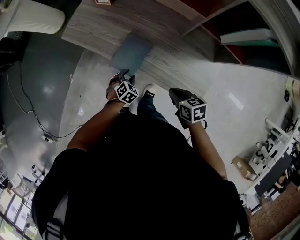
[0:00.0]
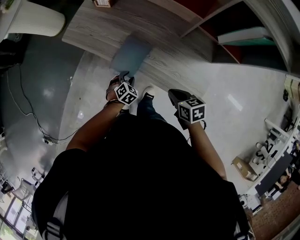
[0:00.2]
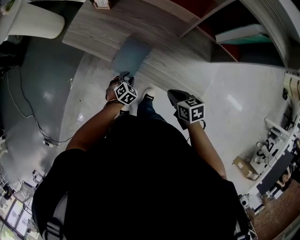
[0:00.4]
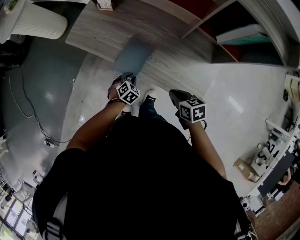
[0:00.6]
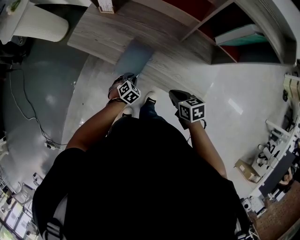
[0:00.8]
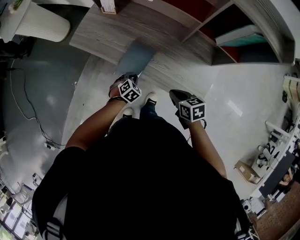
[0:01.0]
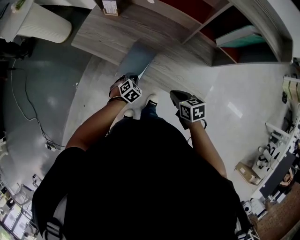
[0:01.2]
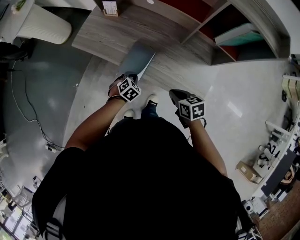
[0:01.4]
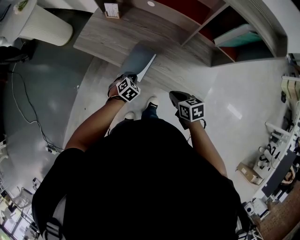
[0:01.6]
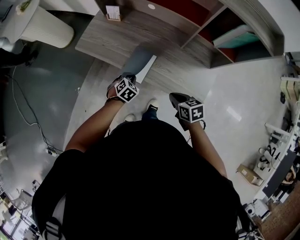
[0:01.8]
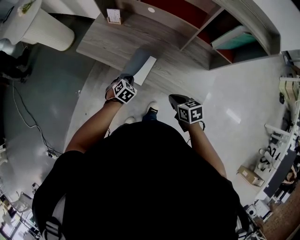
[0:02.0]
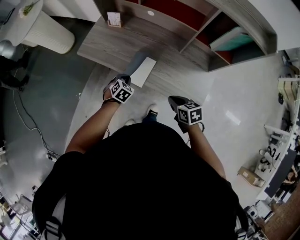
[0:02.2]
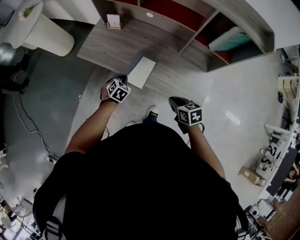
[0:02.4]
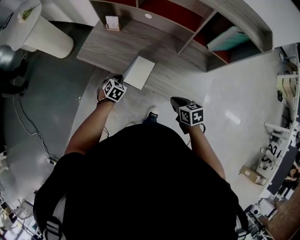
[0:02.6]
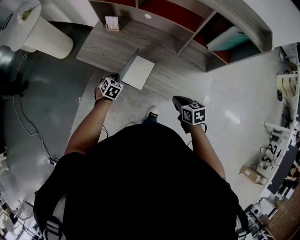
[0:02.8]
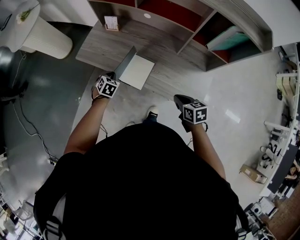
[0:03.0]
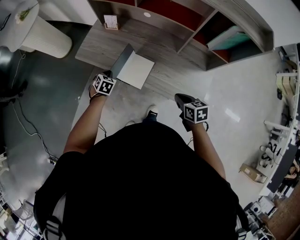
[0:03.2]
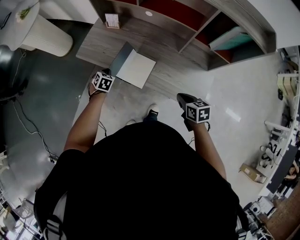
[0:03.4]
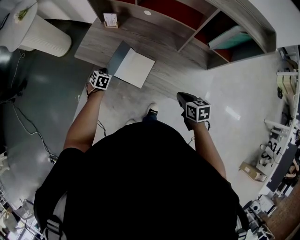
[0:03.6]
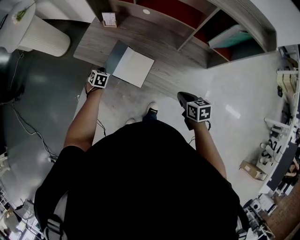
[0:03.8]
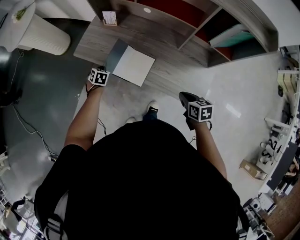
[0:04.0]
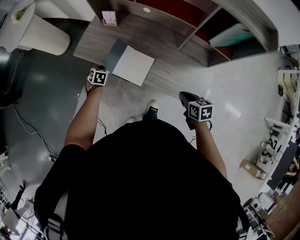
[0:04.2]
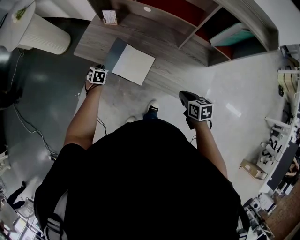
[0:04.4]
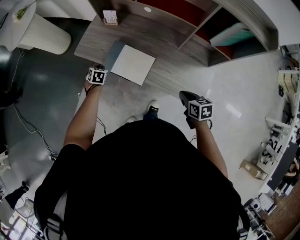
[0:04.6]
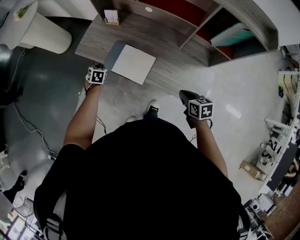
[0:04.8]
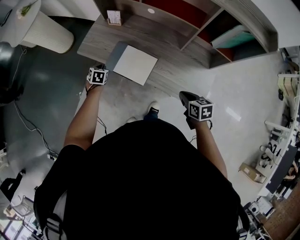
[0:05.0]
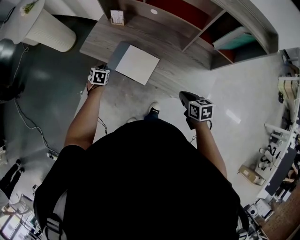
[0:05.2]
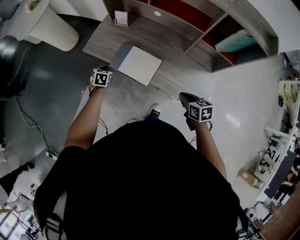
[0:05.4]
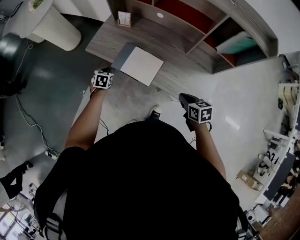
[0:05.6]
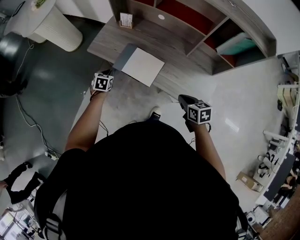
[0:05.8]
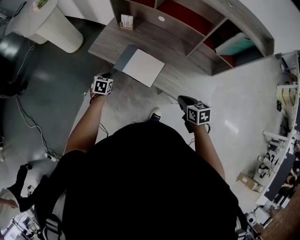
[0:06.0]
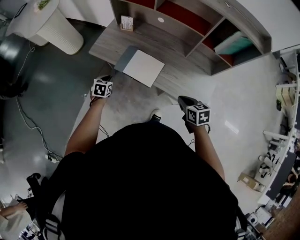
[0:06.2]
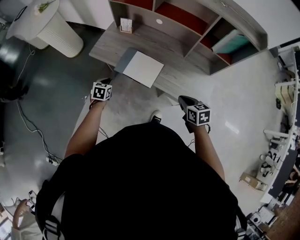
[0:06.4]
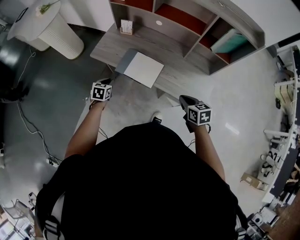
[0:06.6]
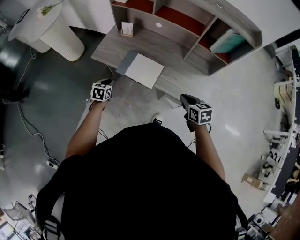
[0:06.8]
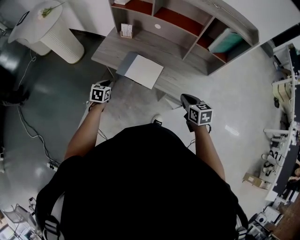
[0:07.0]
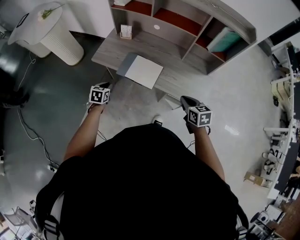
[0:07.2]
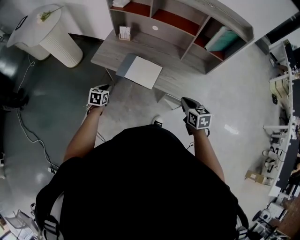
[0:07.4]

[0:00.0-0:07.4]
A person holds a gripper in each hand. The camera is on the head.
0.0 to 1.4 s: The left gripper heads upward, covering roughly 5 cm, and closes its fingers.
1.4 to 3.0 s: The left gripper shifts approximately 15 cm to the left, forward and upward.
3.0 to 4.4 s: The left gripper moves to the left and forward, about 10 cm.
4.4 to 6.0 s: The left gripper goes some 10 cm backward and upward, while the right gripper travels to the left by roughly 5 cm.
6.0 to 7.4 s: The left gripper moves backward, about 5 cm, while the right gripper travels backward and upward by approximately 10 cm.

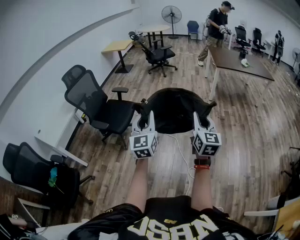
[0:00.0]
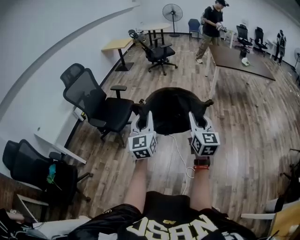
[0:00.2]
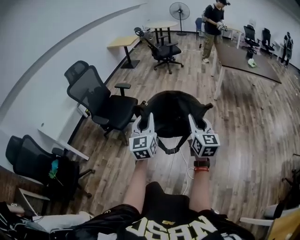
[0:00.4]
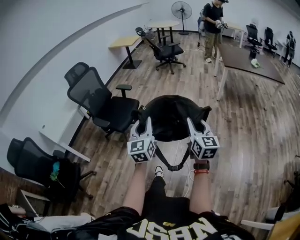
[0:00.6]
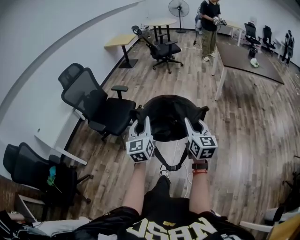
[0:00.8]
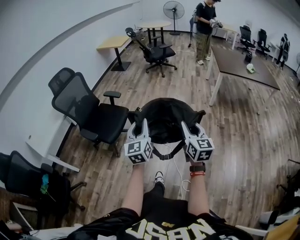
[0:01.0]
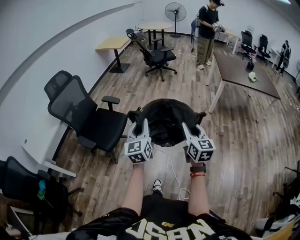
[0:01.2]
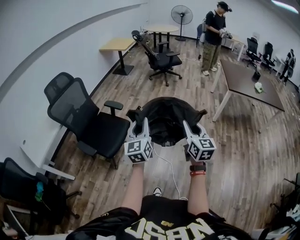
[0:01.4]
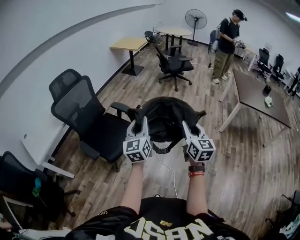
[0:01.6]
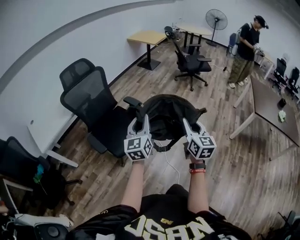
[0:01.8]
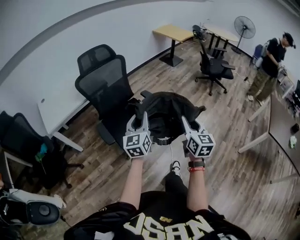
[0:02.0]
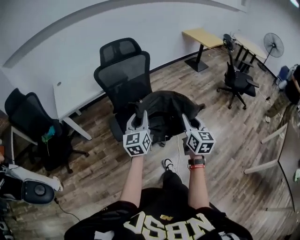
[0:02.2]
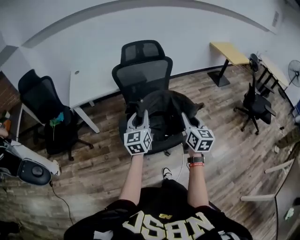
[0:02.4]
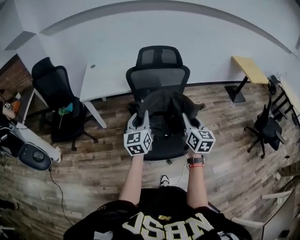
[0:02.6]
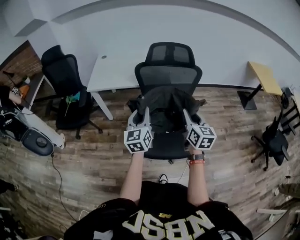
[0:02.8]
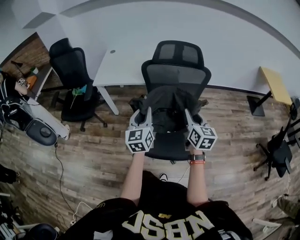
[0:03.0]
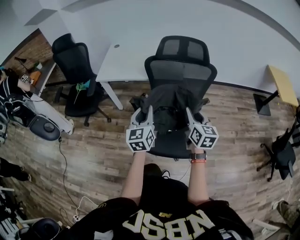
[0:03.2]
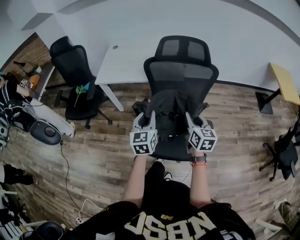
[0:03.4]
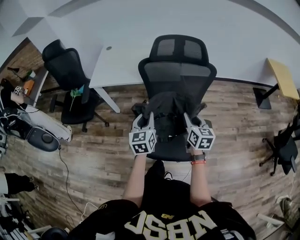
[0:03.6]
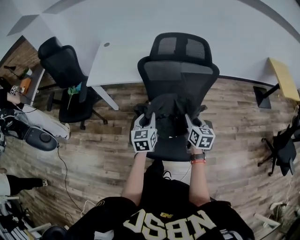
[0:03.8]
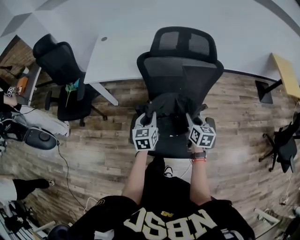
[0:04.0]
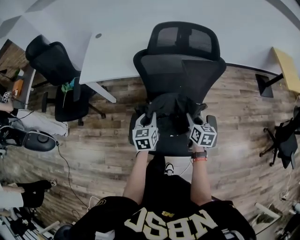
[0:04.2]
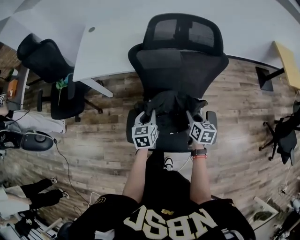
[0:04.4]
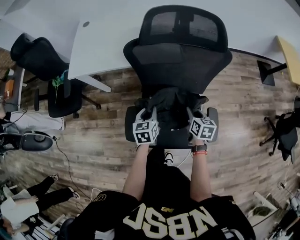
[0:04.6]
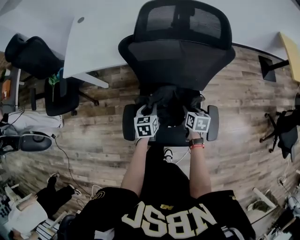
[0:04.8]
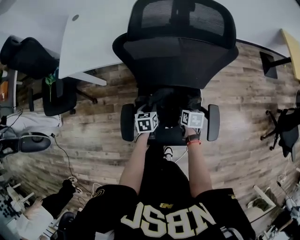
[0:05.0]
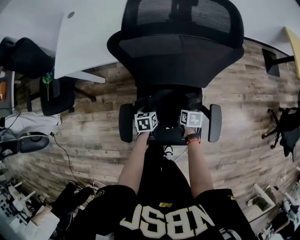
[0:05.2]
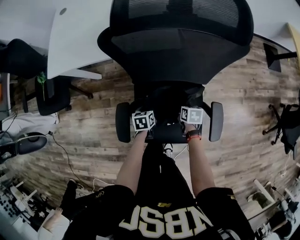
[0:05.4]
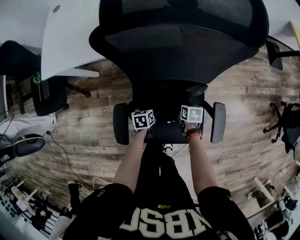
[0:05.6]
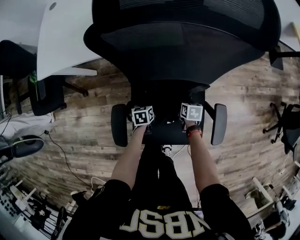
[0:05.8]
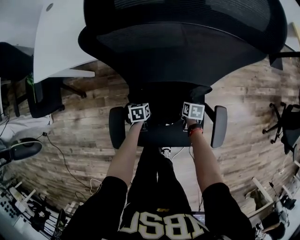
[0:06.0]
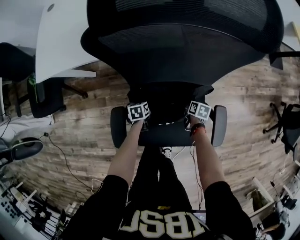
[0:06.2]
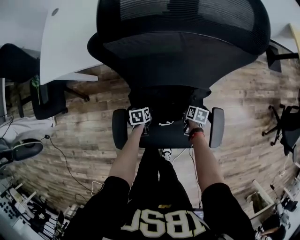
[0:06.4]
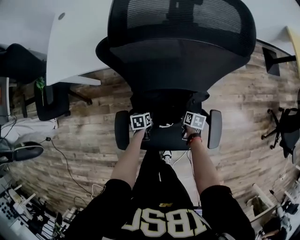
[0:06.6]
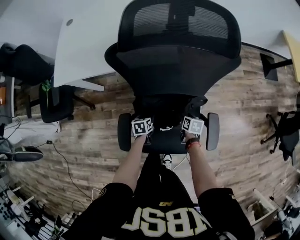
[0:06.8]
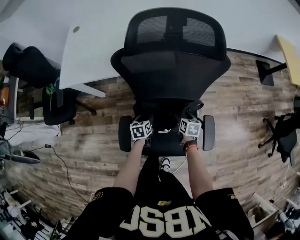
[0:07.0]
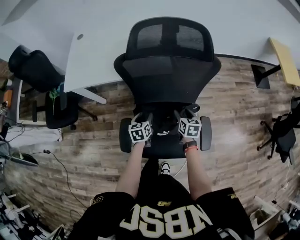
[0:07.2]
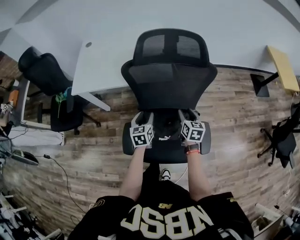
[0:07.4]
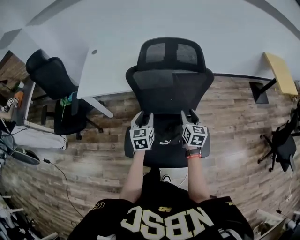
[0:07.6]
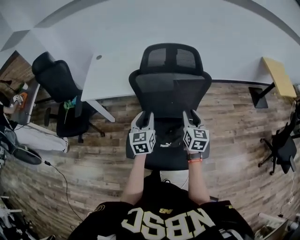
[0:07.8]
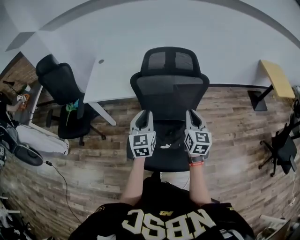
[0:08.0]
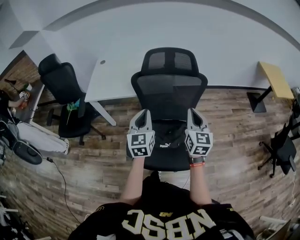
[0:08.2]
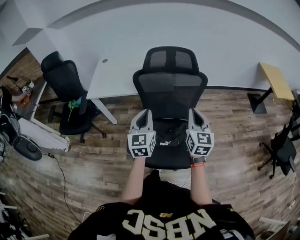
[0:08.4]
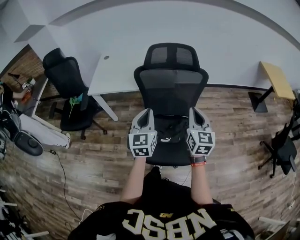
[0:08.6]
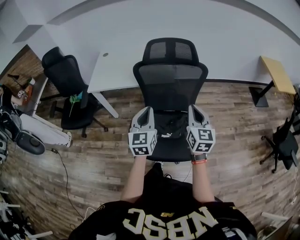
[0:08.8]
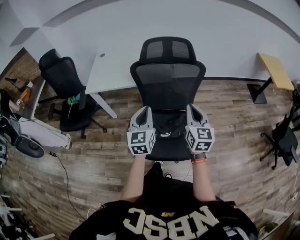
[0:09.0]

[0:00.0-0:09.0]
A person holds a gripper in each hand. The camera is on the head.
0.0 to 1.6 s: Both grippers are carried forward, about 40 cm. The right gripper swivels roughly 20 degrees.
1.6 to 3.0 s: Both grippers are carried roughly 50 cm. The right gripper swivels some 70 degrees. Meanwhile the left gripper turns by approximately 70 degrees.
3.0 to 4.4 s: Both grippers travel together downward and forward, approximately 25 cm. The left gripper rotates roughly 30 degrees. The right gripper turns by some 30 degrees.
4.4 to 6.0 s: The grippers both shift downward by roughly 35 cm. The left gripper tips its fingers downward by roughly 30 degrees; the right gripper swivels approximately 30 degrees.
6.0 to 7.6 s: The grippers both shift upward by roughly 40 cm. The right gripper tips its fingers upward by about 40 degrees, and opens and closes again. Meanwhile the left gripper points its fingers about 40 degrees further upward, and opens up.
7.6 to 9.0 s: Both grippers move upward and backward, about 20 cm. The left gripper closes up. The right gripper closes.

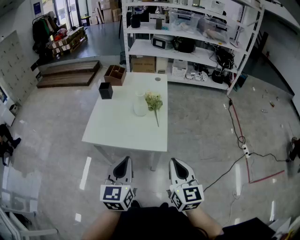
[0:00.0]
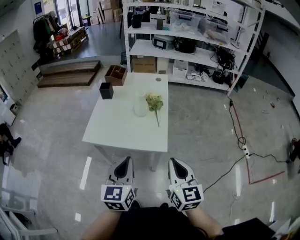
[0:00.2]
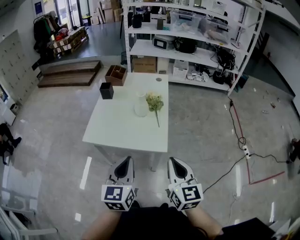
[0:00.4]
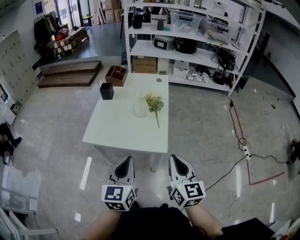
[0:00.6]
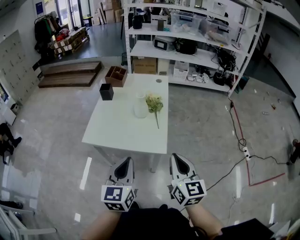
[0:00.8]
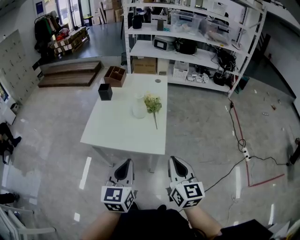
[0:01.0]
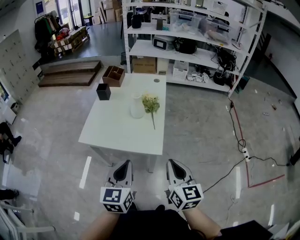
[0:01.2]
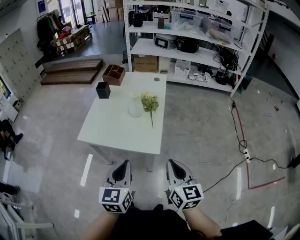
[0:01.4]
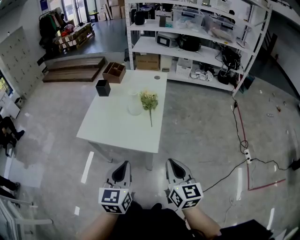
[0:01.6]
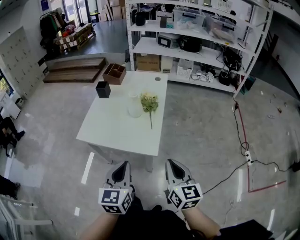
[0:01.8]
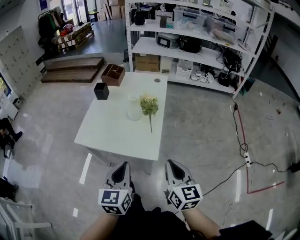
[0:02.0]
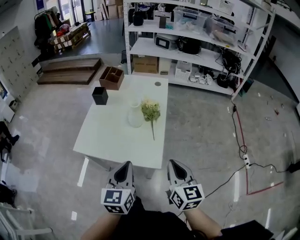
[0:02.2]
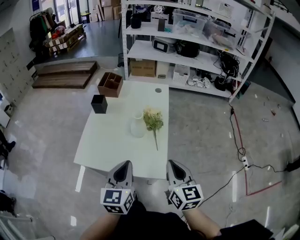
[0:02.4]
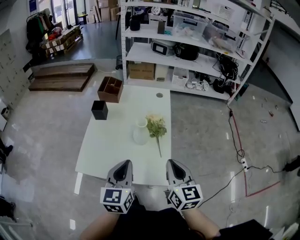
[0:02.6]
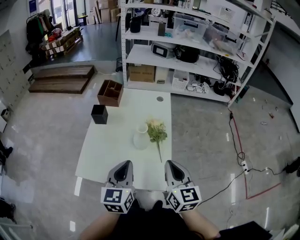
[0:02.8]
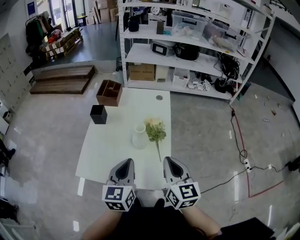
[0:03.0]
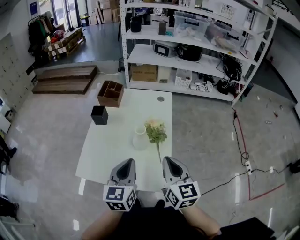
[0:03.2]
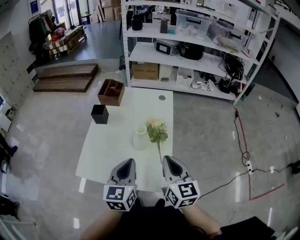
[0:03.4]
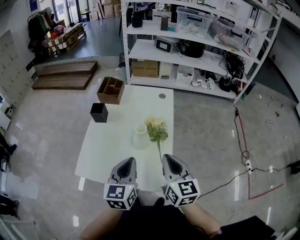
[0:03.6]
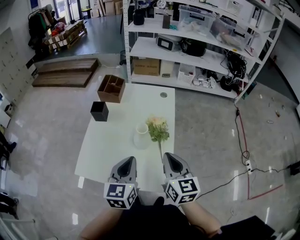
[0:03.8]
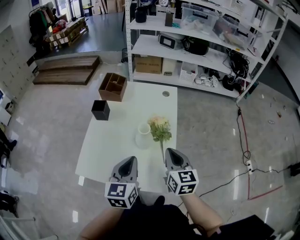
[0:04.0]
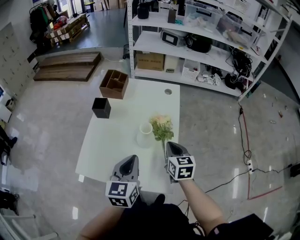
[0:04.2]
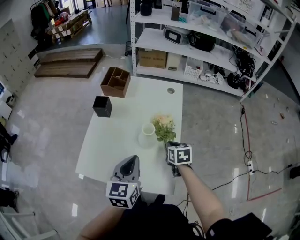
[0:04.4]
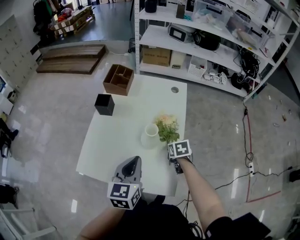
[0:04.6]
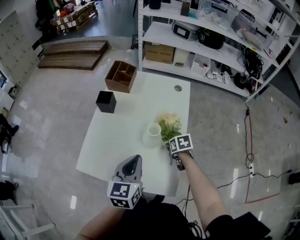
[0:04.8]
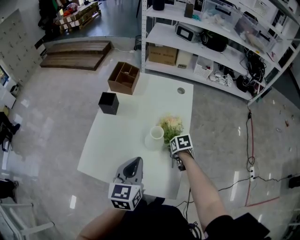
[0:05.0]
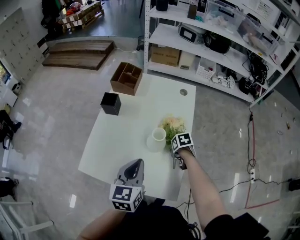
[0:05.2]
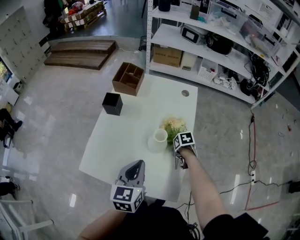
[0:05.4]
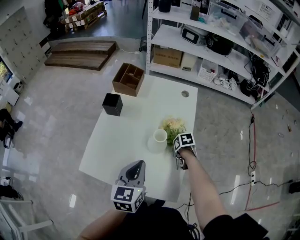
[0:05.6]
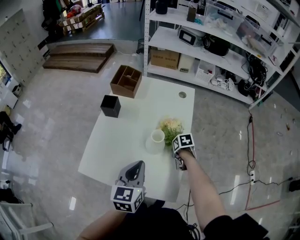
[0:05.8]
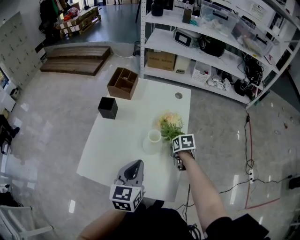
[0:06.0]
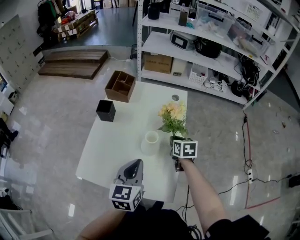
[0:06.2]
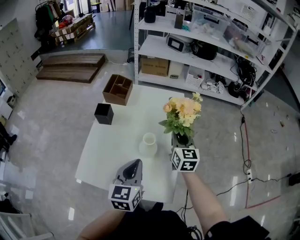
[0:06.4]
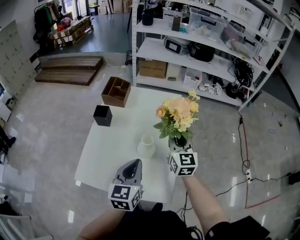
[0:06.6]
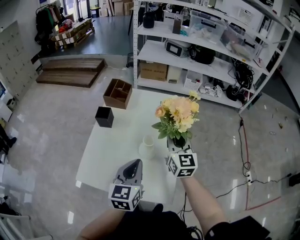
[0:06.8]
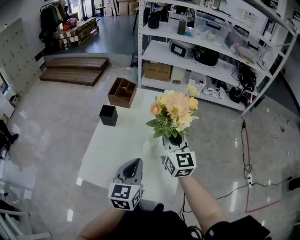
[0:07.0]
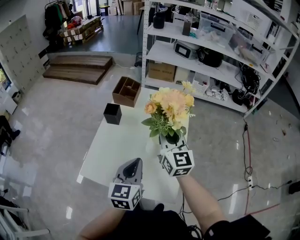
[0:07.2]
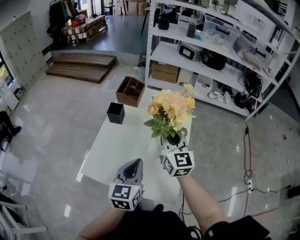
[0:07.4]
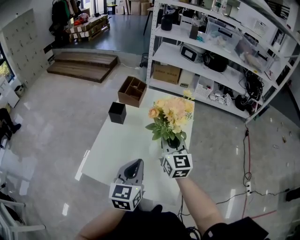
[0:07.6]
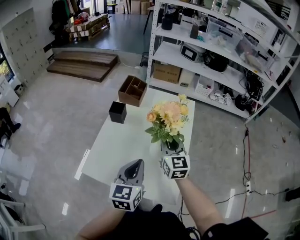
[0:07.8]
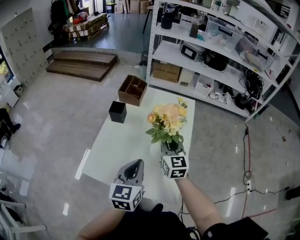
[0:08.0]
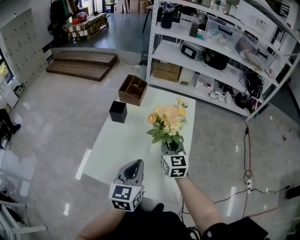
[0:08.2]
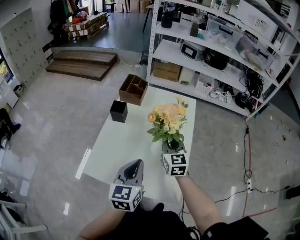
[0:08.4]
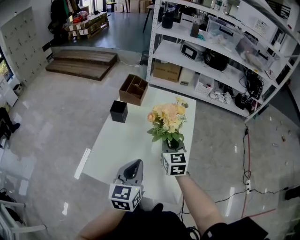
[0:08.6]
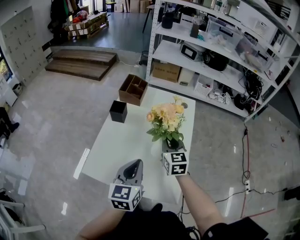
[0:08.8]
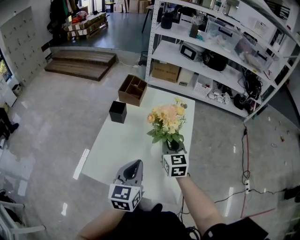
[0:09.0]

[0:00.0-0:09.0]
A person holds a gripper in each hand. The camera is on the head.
0.0 to 1.6 s: The grippers both shift to the right by about 5 cm.
1.6 to 3.0 s: The grippers both shift forward by some 25 cm.
3.0 to 4.4 s: The right gripper moves downward and forward, about 25 cm, and angles its fingers downward, by roughly 40 degrees. Meanwhile the left gripper shifts approximately 5 cm forward.
4.4 to 6.0 s: The right gripper heads downward, covering some 5 cm, and opens and closes again.
6.0 to 7.6 s: The left gripper ends up approximately 5 cm from where it was. The right gripper travels upward and to the left by roughly 30 cm, and tips its fingers upward by approximately 60 degrees.
7.6 to 9.0 s: The right gripper is displaced downward by roughly 5 cm.
